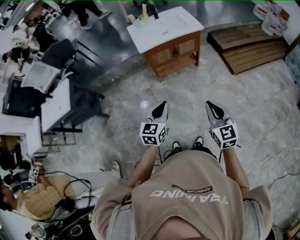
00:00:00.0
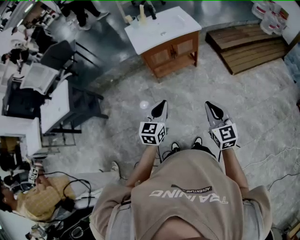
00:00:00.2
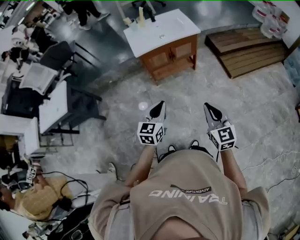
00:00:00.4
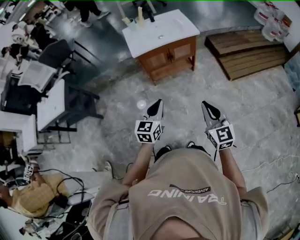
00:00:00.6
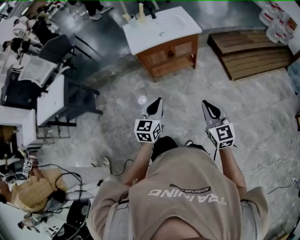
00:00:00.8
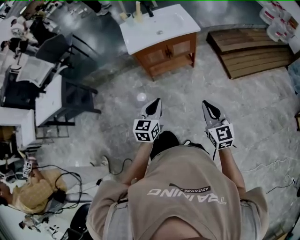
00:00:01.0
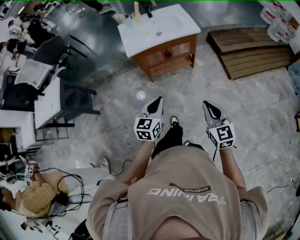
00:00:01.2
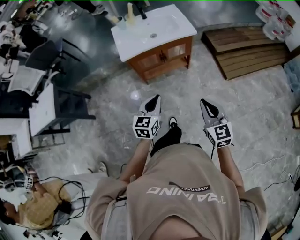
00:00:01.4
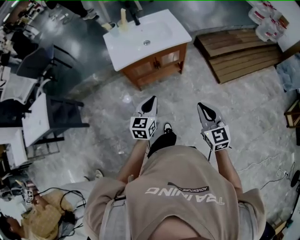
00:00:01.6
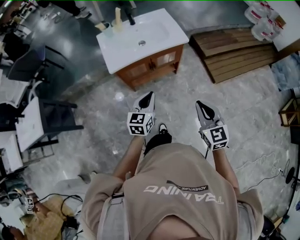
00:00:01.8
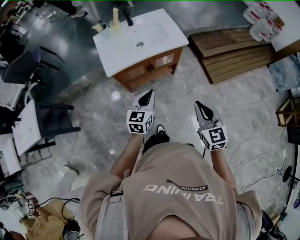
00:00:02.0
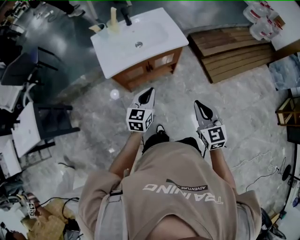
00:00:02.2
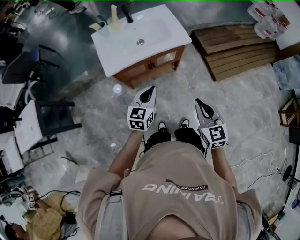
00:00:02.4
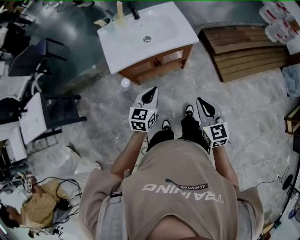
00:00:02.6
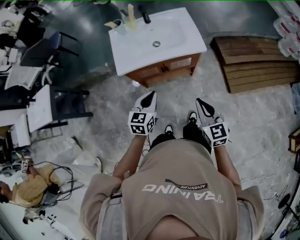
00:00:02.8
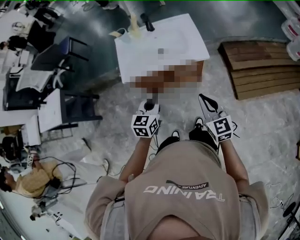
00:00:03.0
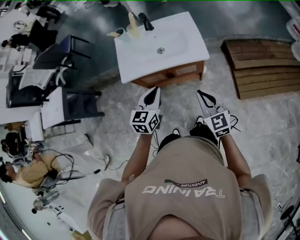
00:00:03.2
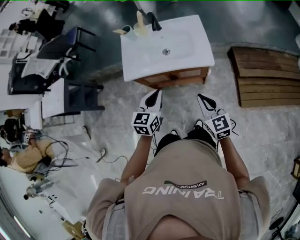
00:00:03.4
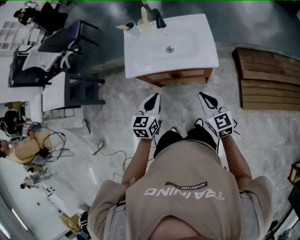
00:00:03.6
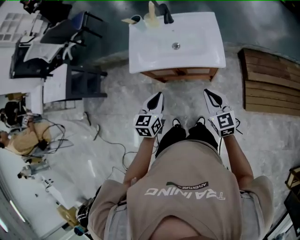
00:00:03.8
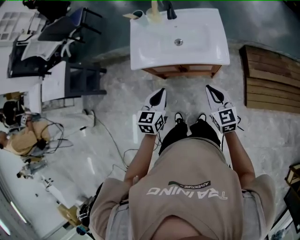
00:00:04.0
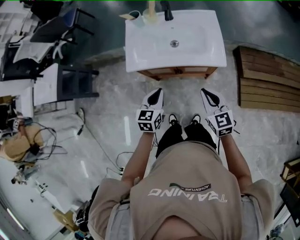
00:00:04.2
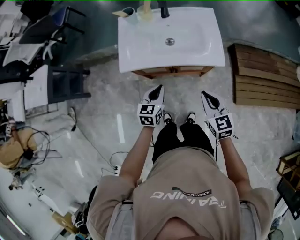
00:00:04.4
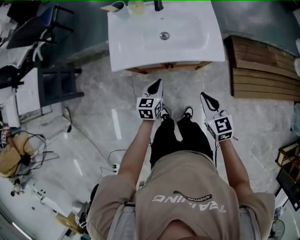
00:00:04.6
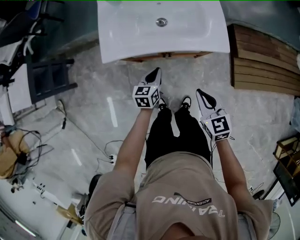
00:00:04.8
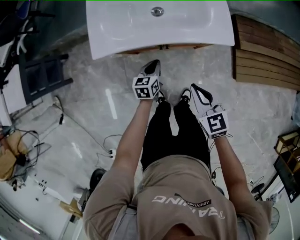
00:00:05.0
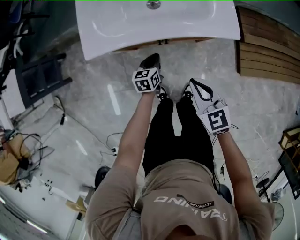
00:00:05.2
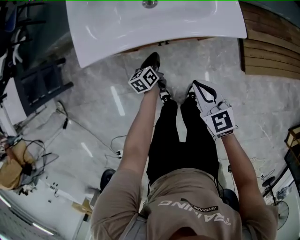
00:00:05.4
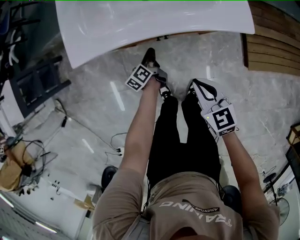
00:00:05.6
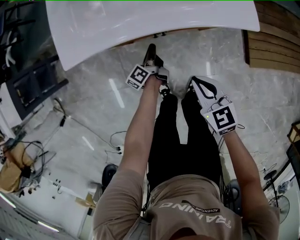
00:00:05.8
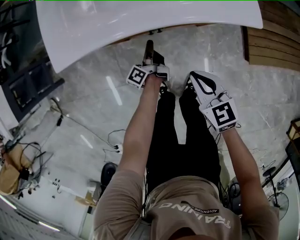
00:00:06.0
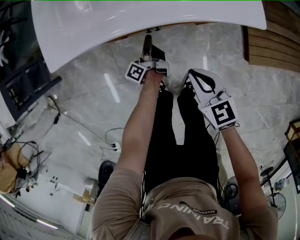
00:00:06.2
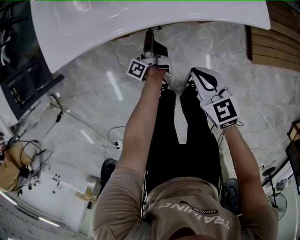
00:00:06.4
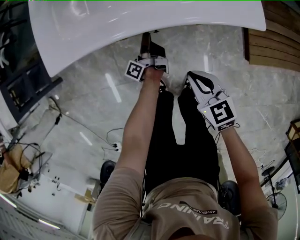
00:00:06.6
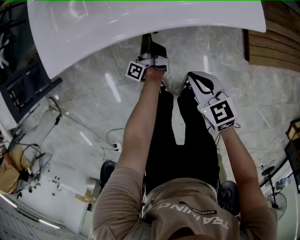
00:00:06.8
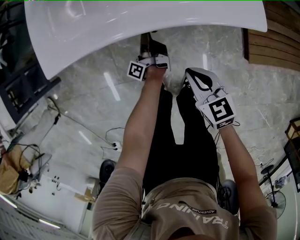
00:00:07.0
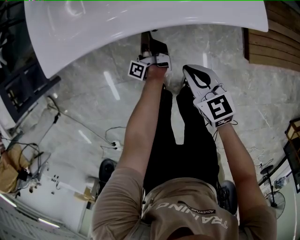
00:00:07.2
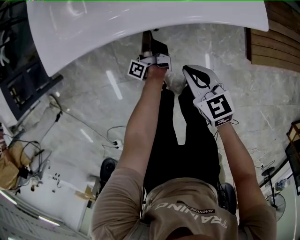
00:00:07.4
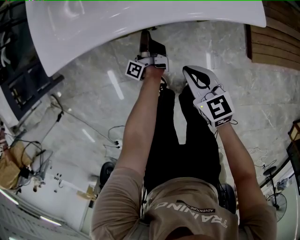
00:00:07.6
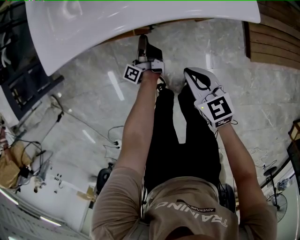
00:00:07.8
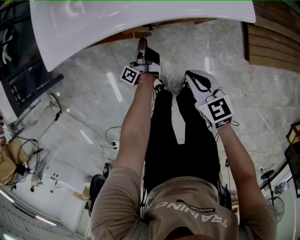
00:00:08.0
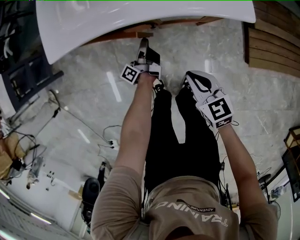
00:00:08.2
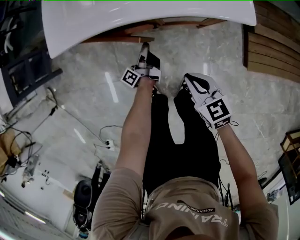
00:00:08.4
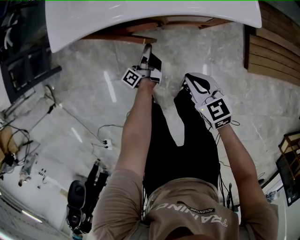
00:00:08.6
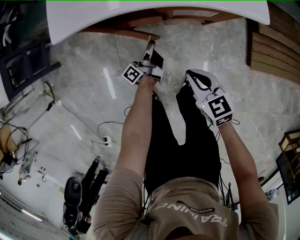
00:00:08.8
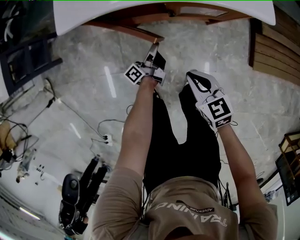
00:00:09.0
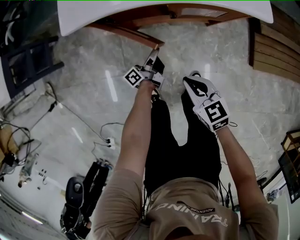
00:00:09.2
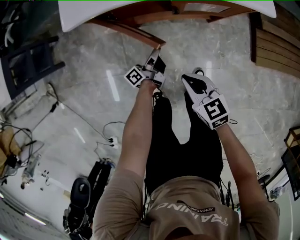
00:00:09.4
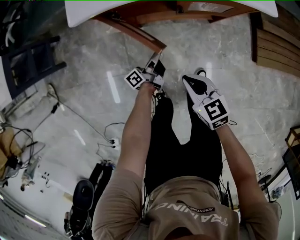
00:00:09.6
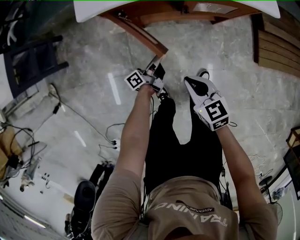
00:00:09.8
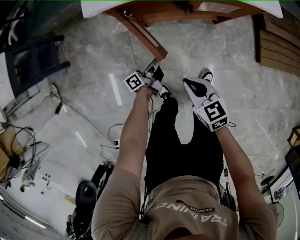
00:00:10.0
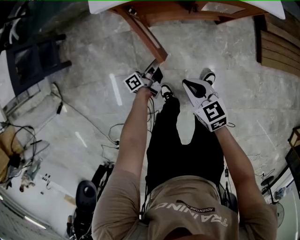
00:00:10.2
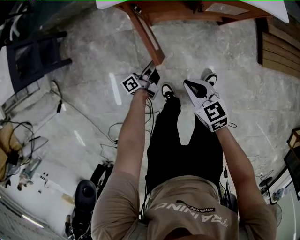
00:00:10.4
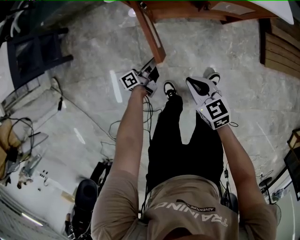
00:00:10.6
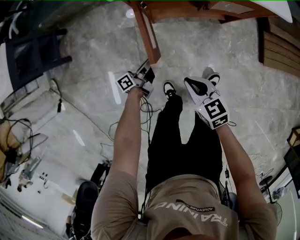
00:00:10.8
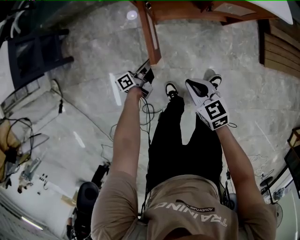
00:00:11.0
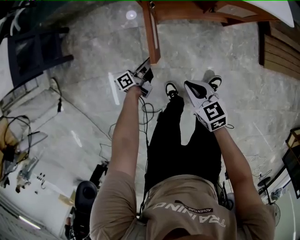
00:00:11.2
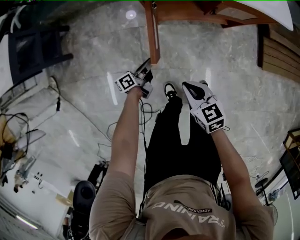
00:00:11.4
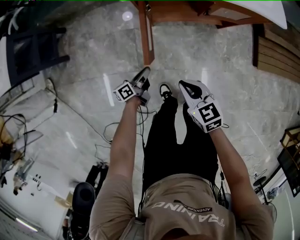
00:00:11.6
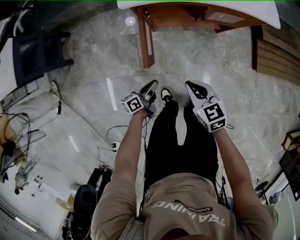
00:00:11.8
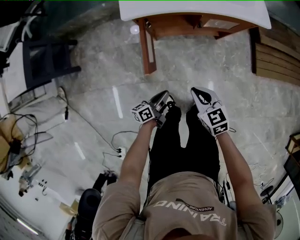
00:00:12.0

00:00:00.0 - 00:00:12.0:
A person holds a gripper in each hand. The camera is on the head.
00:00:00.0 - 00:00:01.6: The right gripper moves forward and to the right, some 20 cm; the left gripper is displaced forward by some 20 cm.
00:00:01.6 - 00:00:03.0: The grippers both shift forward by approximately 20 cm.
00:00:03.0 - 00:00:04.4: The left gripper travels downward and forward by some 10 cm. Meanwhile the right gripper shifts roughly 10 cm forward and downward.
00:00:04.4 - 00:00:06.0: Both grippers move downward, some 25 cm. The left gripper twists roughly 70 degrees counterclockwise, seen from behind.
00:00:07.6 - 00:00:09.0: Both grippers travel together backward and to the left, about 10 cm.
00:00:09.0 - 00:00:10.4: The right gripper travels to the left by roughly 15 cm. Meanwhile the left gripper goes roughly 15 cm to the left and backward.
00:00:10.4 - 00:00:12.0: The right gripper goes to the left and returns, about 5 cm each way, while the left gripper heads backward and upward, covering roughly 15 cm, and rotates roughly 20 degrees.

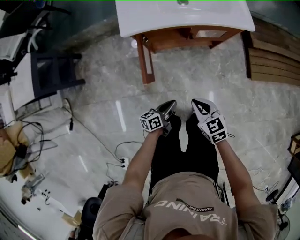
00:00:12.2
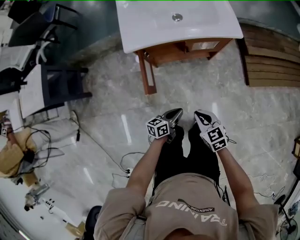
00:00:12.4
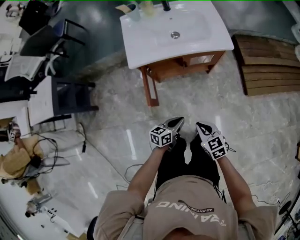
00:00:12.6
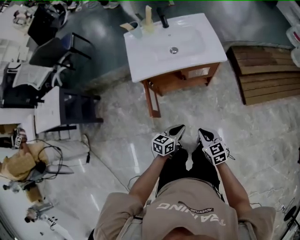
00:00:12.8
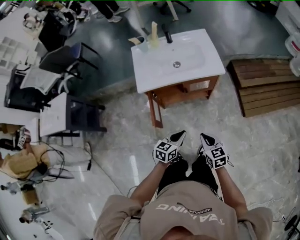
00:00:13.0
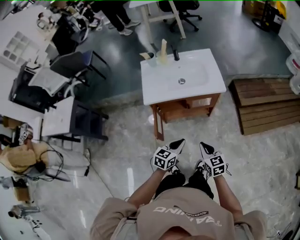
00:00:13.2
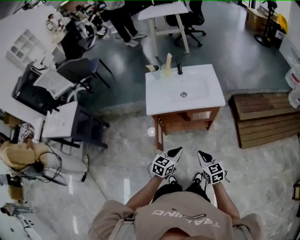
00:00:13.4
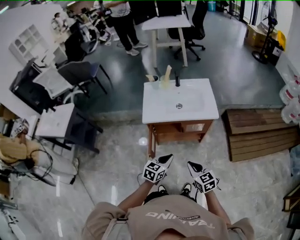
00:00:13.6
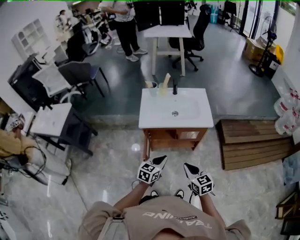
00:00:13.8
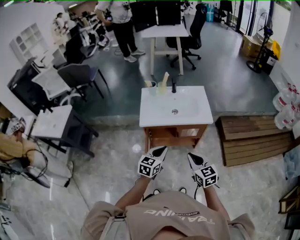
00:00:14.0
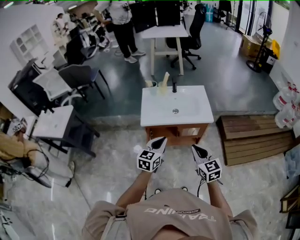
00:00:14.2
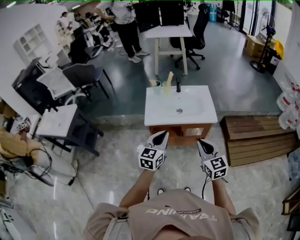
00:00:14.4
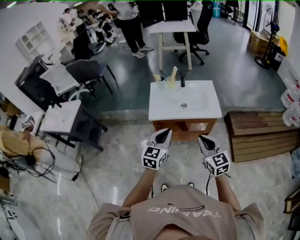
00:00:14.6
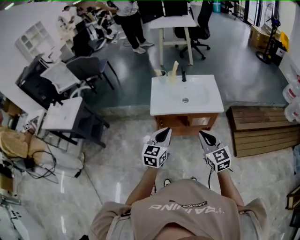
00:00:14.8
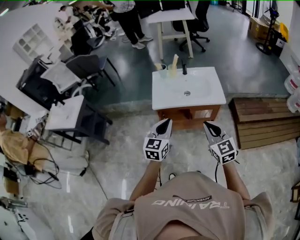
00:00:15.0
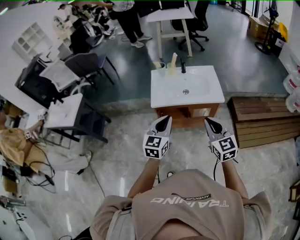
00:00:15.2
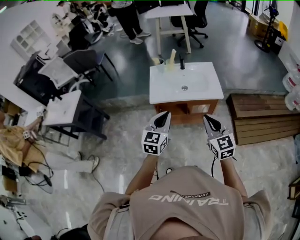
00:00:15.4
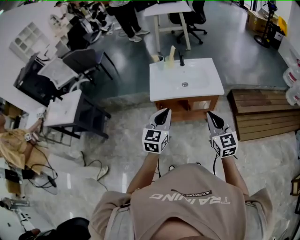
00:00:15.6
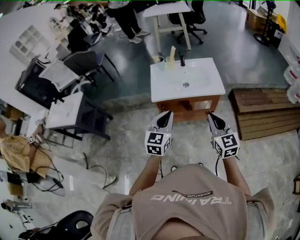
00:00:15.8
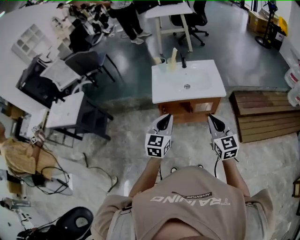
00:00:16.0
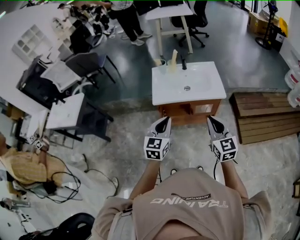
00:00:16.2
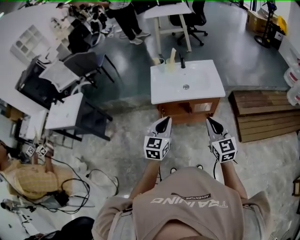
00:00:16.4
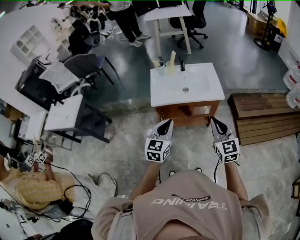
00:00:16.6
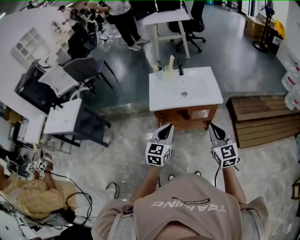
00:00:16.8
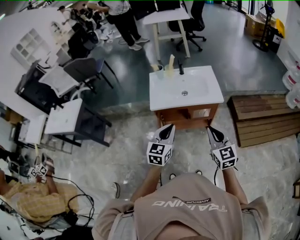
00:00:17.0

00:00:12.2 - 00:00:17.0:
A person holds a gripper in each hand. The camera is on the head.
00:00:12.2 - 00:00:13.8: The two grippers go approximately 25 cm upward. The left gripper twists about 50 degrees clockwise, seen from behind.
00:00:13.8 - 00:00:15.4: The two grippers go about 15 cm upward. The left gripper changes its angle by about 20 degrees; the right gripper turns by roughly 20 degrees.
00:00:15.4 - 00:00:17.0: The grippers make only small movements.

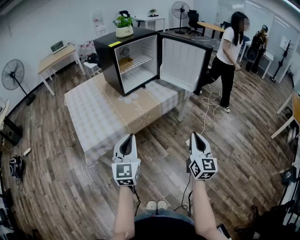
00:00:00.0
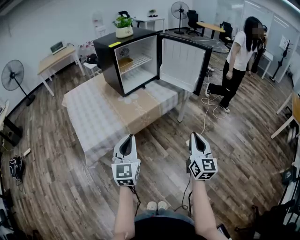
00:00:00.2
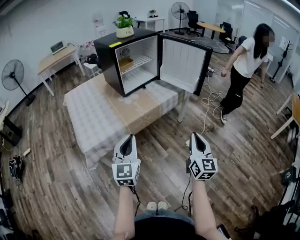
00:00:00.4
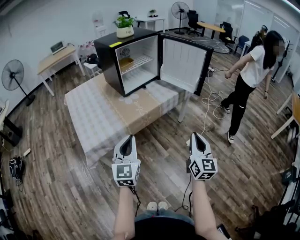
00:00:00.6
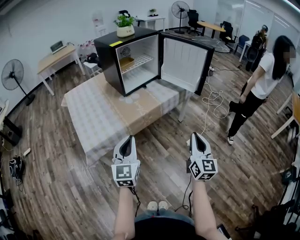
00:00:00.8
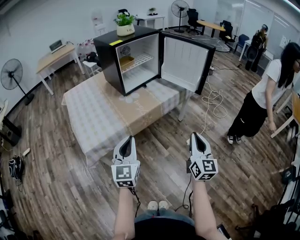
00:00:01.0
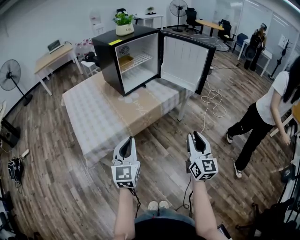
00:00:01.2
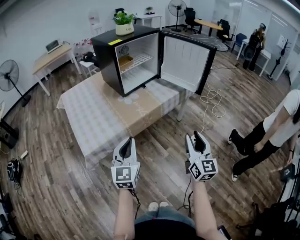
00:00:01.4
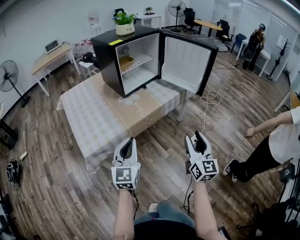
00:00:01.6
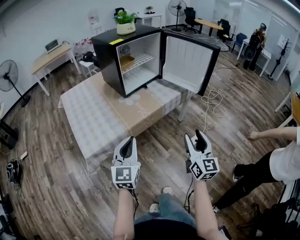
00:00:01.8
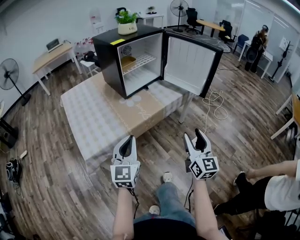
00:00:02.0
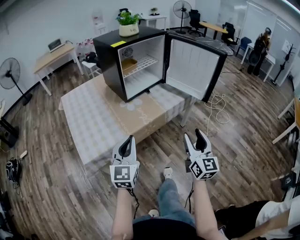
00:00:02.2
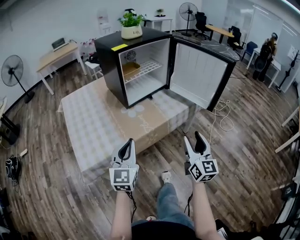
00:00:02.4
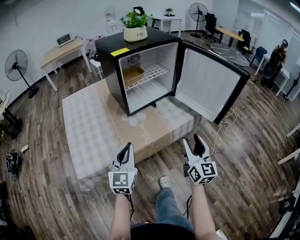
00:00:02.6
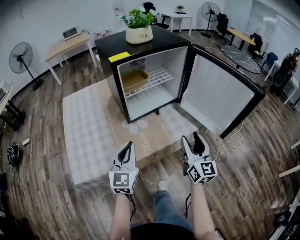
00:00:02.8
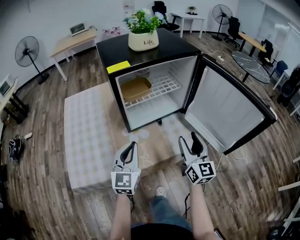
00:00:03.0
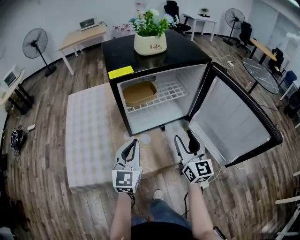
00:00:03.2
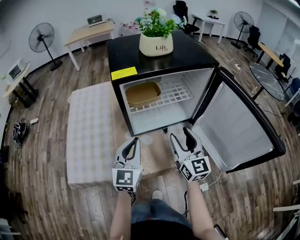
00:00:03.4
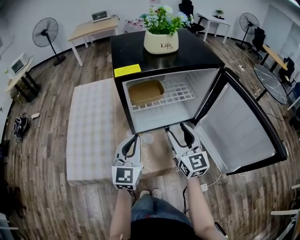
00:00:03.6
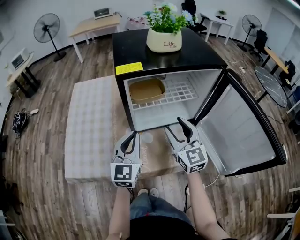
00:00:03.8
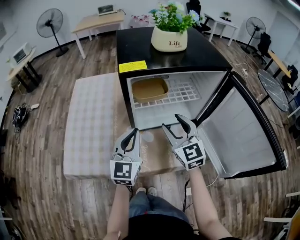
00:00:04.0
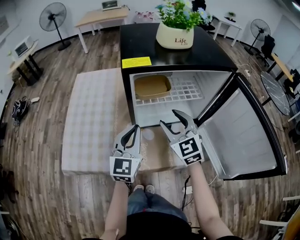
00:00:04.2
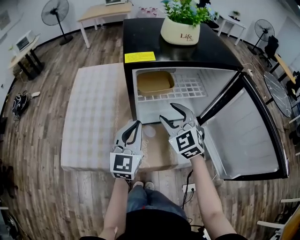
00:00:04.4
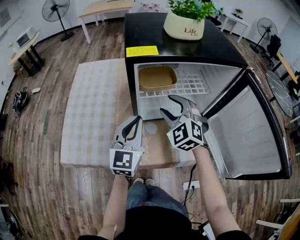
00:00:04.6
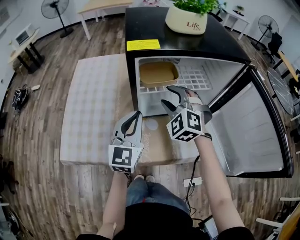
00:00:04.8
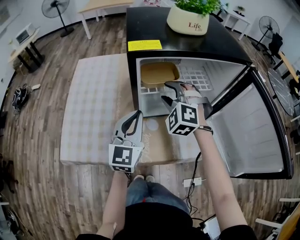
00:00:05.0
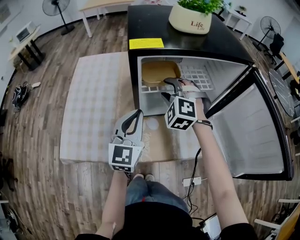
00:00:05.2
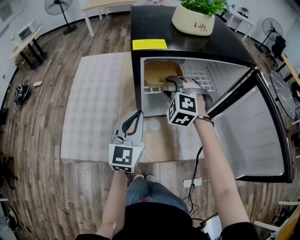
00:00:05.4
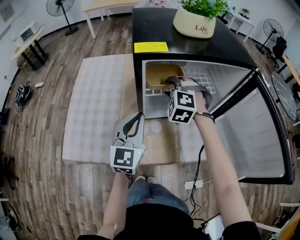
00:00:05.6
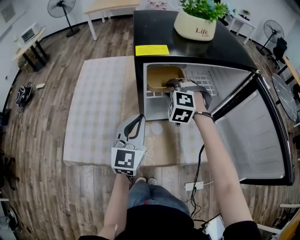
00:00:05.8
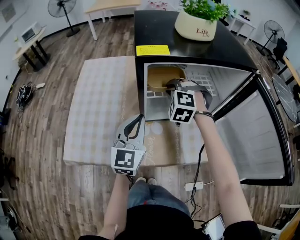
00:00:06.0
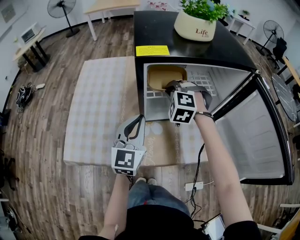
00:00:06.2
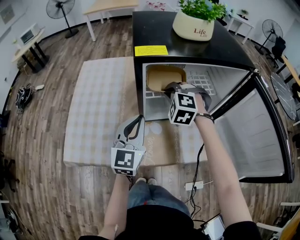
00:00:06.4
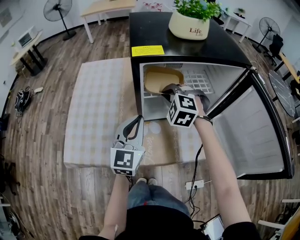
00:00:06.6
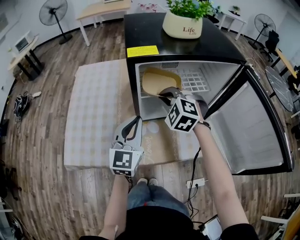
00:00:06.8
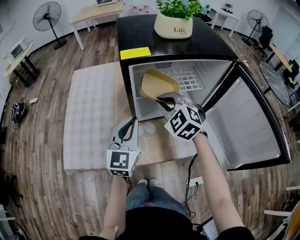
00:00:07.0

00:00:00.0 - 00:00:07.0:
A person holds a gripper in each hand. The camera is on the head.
00:00:00.0 - 00:00:01.4: The right gripper changes place by approximately 5 cm, and opens up.
00:00:01.4 - 00:00:02.8: The two grippers go about 30 cm forward.
00:00:02.8 - 00:00:04.2: The right gripper ends up roughly 10 cm from where it was, and rotates approximately 50 degrees.
00:00:04.2 - 00:00:05.6: The right gripper heads forward, covering approximately 10 cm, and rolls counterclockwise, seen from behind, by roughly 50 degrees.
00:00:05.6 - 00:00:07.0: The right gripper shifts roughly 10 cm backward, swivels roughly 30 degrees, and closes up.
